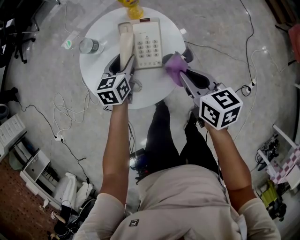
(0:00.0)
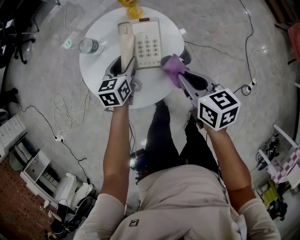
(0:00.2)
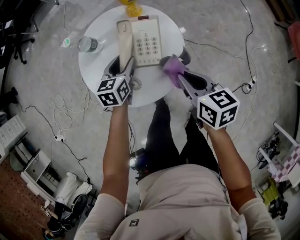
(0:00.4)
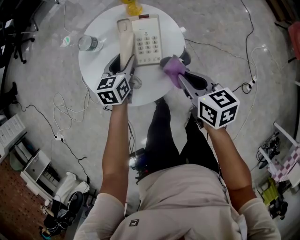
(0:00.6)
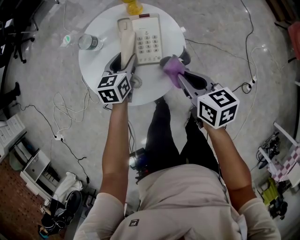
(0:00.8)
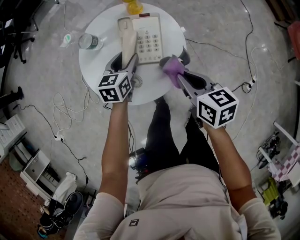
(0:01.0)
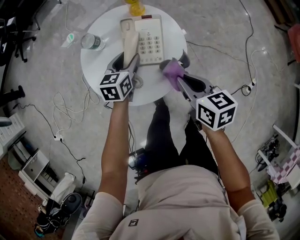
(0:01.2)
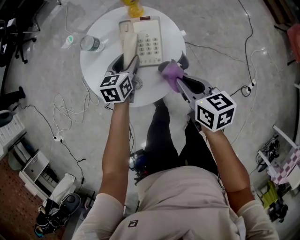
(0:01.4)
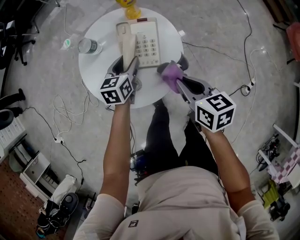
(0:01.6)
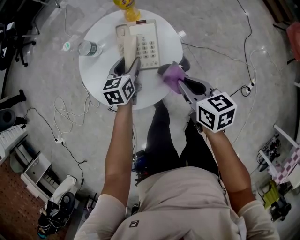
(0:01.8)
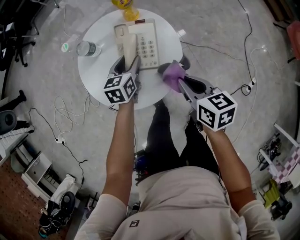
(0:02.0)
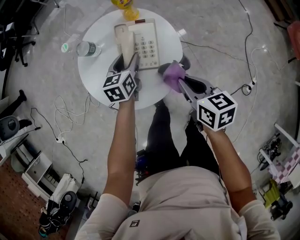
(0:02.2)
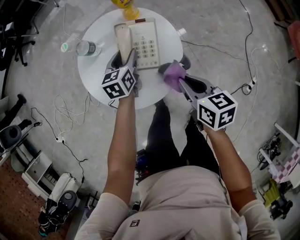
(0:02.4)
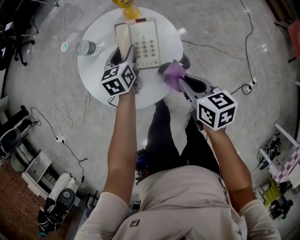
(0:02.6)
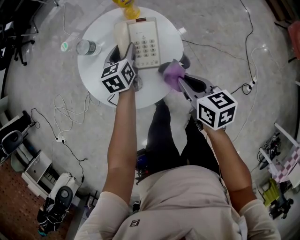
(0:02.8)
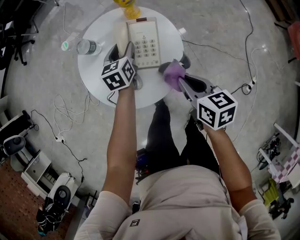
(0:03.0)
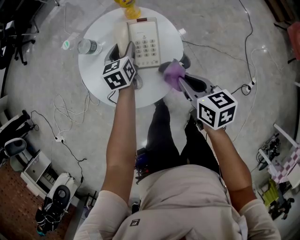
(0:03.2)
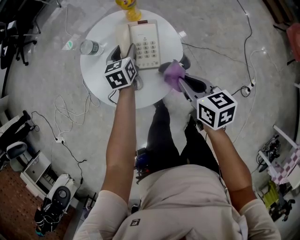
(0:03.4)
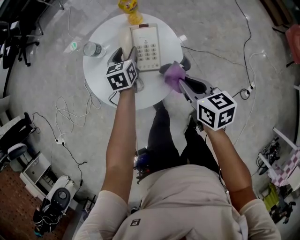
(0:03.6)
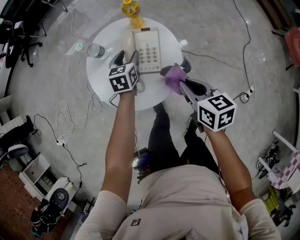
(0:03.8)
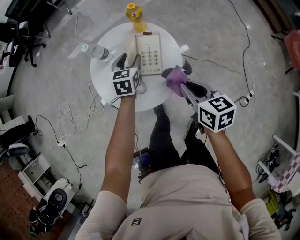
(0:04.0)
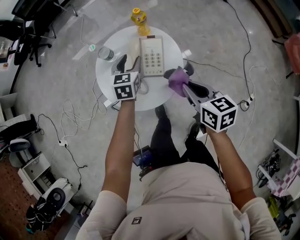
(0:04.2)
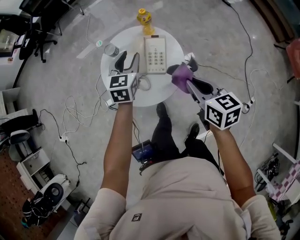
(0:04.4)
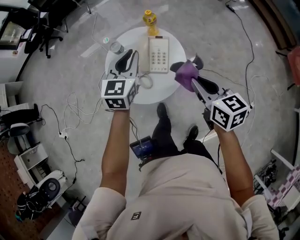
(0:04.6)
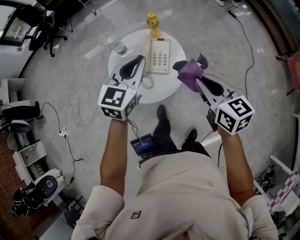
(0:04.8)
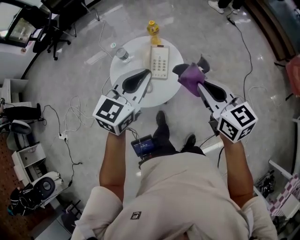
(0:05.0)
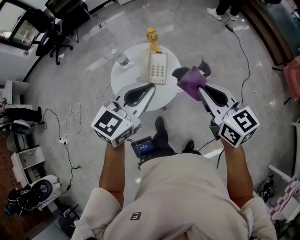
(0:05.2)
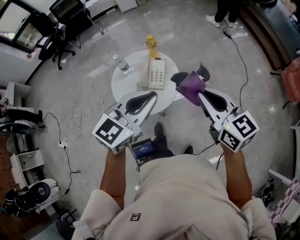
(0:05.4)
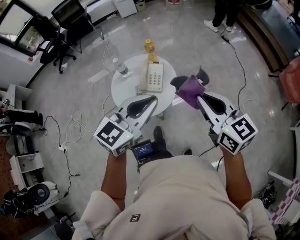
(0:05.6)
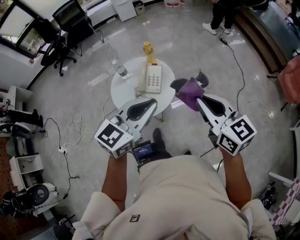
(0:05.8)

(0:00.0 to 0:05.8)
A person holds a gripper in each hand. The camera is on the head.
0:00.0 - 0:01.4: The grippers move only a little.
0:01.4 - 0:02.8: The left gripper shifts about 5 cm forward.
0:02.8 - 0:04.4: The grippers both shift upward by some 15 cm.
0:04.4 - 0:05.8: The right gripper moves upward and backward, some 25 cm, and swivels roughly 30 degrees. The left gripper moves upward, backward and to the right, approximately 35 cm, turns by some 30 degrees, and closes up.

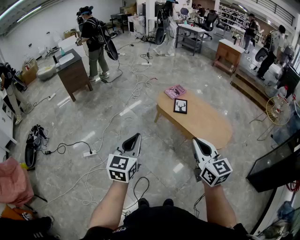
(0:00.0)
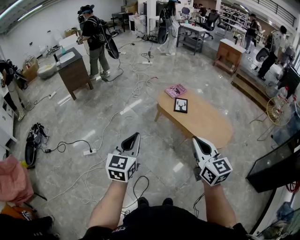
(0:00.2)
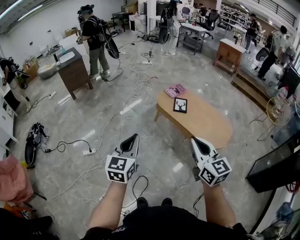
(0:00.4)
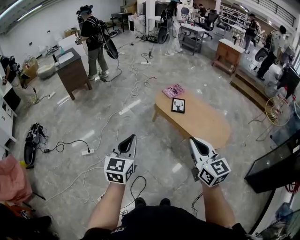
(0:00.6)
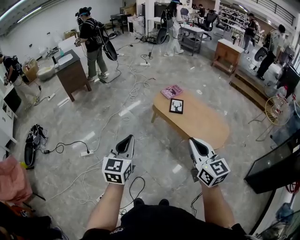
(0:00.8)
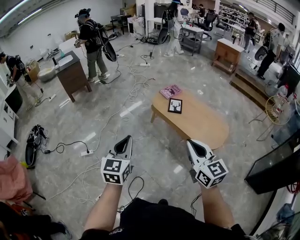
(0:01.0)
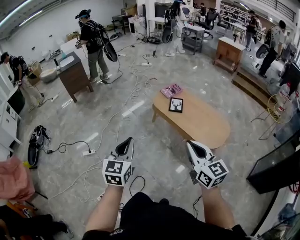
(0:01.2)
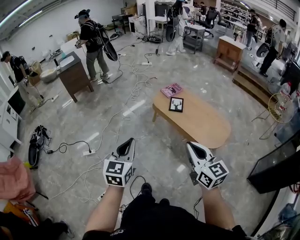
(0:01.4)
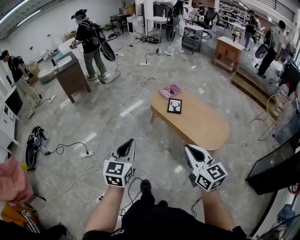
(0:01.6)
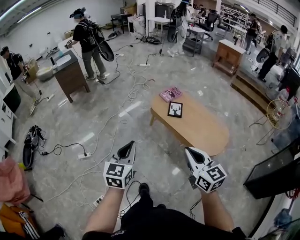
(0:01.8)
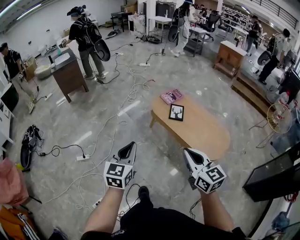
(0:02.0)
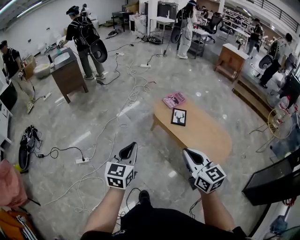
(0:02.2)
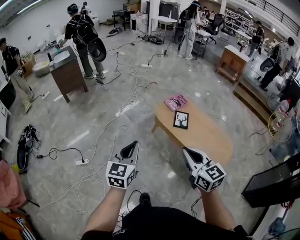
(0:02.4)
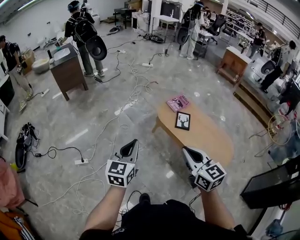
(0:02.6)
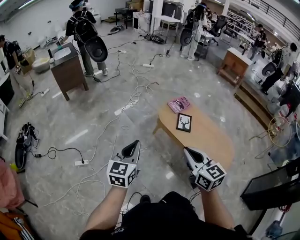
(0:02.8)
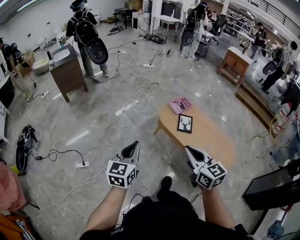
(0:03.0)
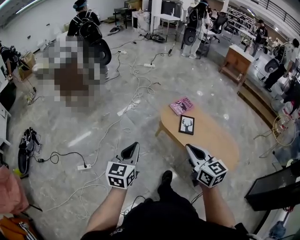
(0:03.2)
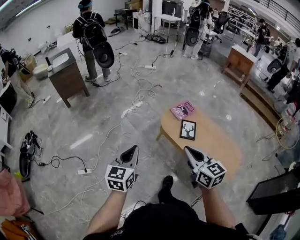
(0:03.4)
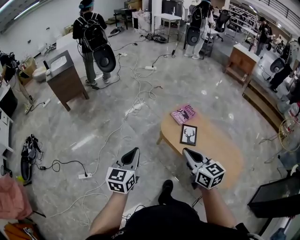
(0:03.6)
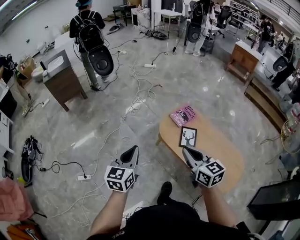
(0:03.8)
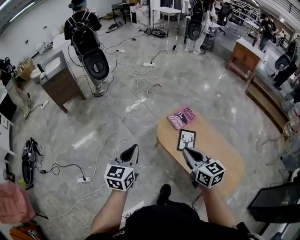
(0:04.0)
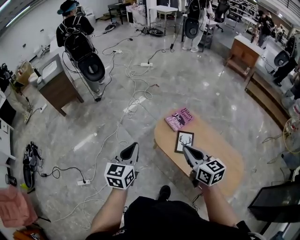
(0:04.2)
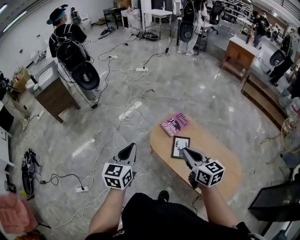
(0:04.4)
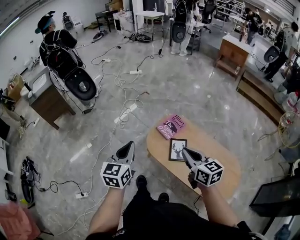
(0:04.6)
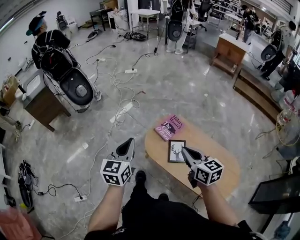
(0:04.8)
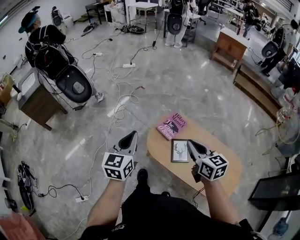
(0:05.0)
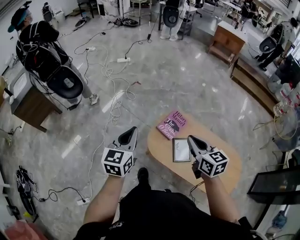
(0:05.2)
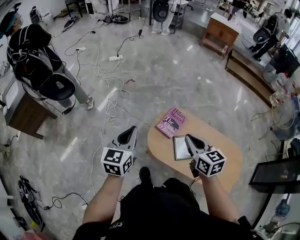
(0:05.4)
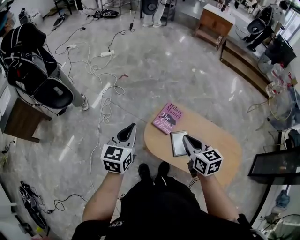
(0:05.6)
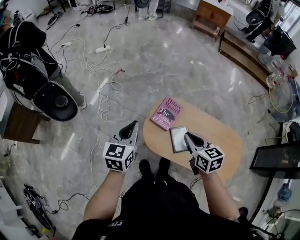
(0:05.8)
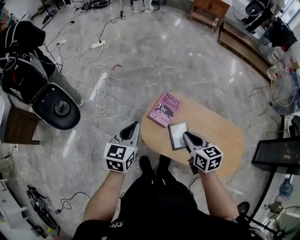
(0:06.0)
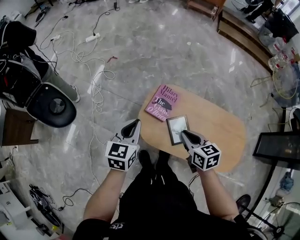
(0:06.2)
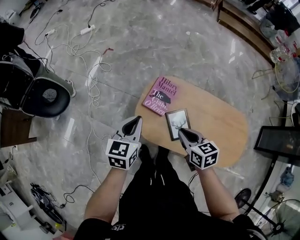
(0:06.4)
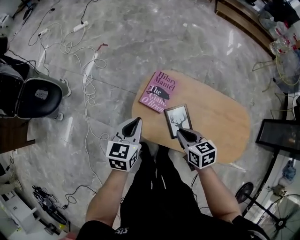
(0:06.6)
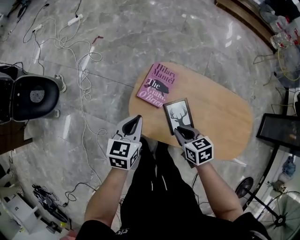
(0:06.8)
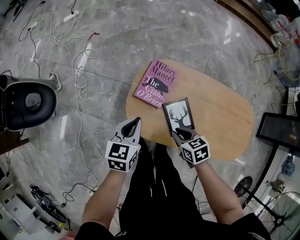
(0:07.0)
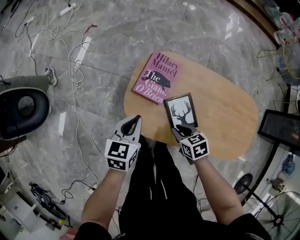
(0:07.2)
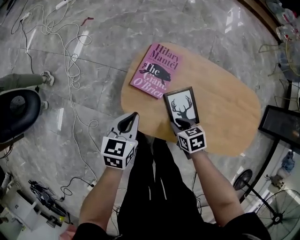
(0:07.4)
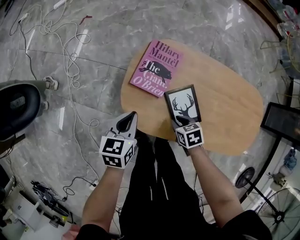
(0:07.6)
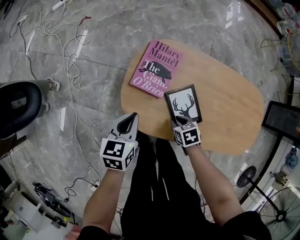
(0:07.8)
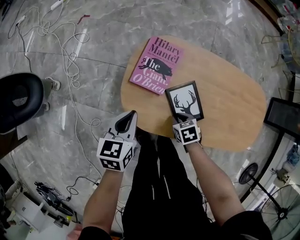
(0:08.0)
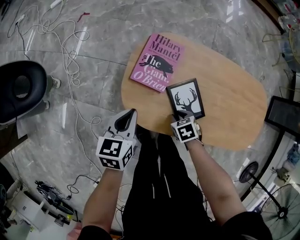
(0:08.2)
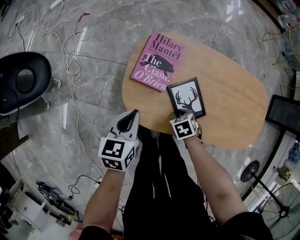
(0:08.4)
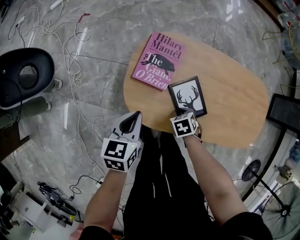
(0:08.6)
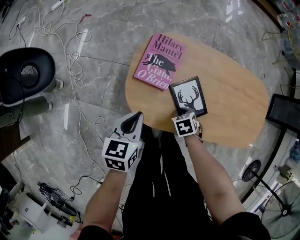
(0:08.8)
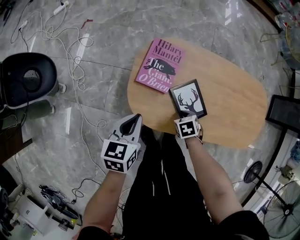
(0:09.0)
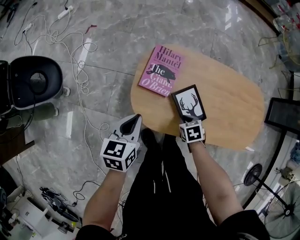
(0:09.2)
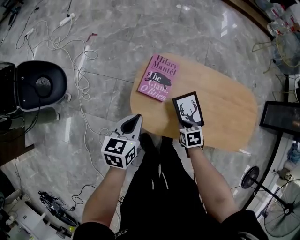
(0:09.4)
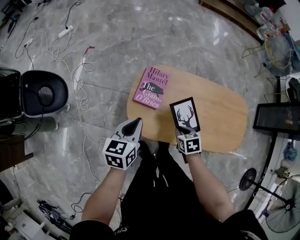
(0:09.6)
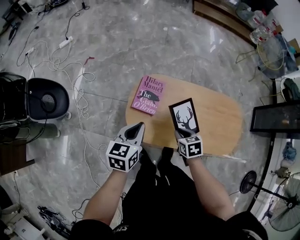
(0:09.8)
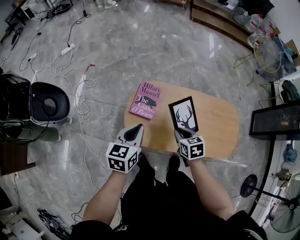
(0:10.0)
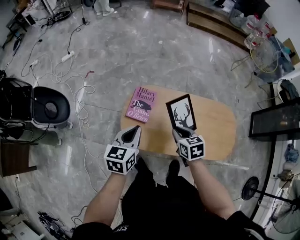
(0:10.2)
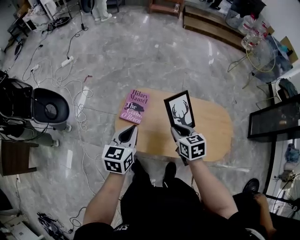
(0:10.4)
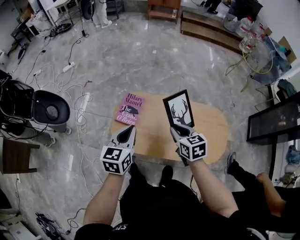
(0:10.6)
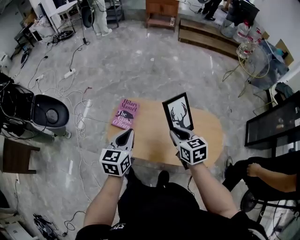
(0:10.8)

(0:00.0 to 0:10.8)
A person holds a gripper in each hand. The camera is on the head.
0:00.0 - 0:01.6: Both grippers travel together to the right, approximately 5 cm.
0:01.6 - 0:03.0: Both grippers travel together forward and to the left, roughly 30 cm.
0:03.0 - 0:04.6: Both grippers travel together forward and to the right, about 40 cm.
0:04.6 - 0:06.2: The grippers both shift forward and downward by about 30 cm. The right gripper changes its angle by some 30 degrees. The left gripper swivels some 30 degrees.
0:06.2 - 0:07.8: The two grippers go roughly 35 cm downward. The right gripper angles its fingers downward, by approximately 30 degrees.
0:07.8 - 0:09.2: The left gripper travels upward by roughly 5 cm.
0:09.2 - 0:10.8: Both grippers move upward and to the right, roughly 40 cm. The right gripper angles its fingers upward, by about 40 degrees.

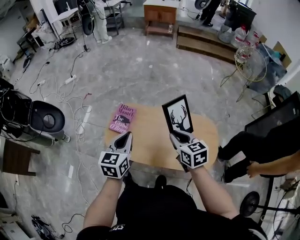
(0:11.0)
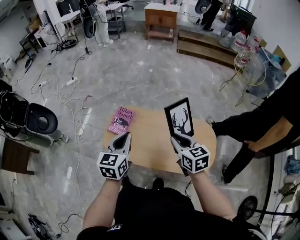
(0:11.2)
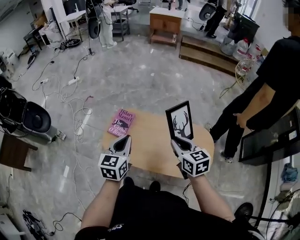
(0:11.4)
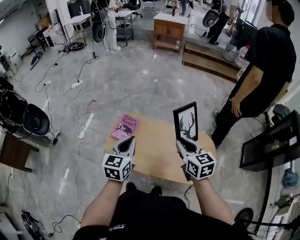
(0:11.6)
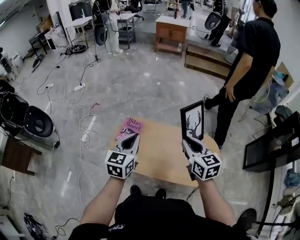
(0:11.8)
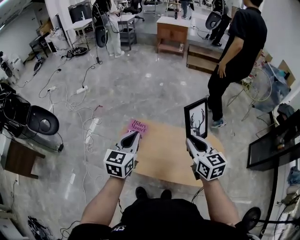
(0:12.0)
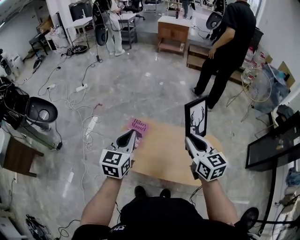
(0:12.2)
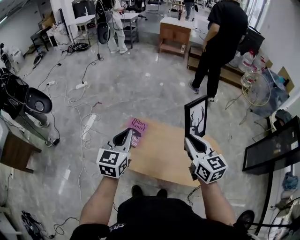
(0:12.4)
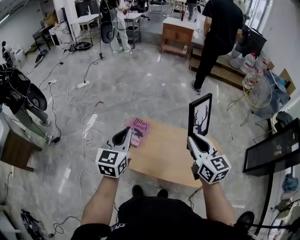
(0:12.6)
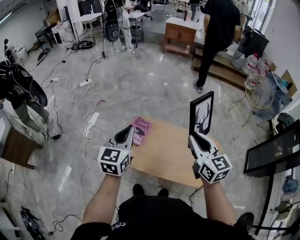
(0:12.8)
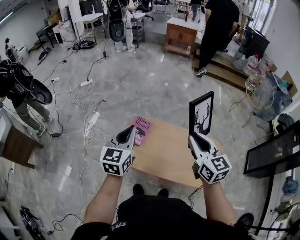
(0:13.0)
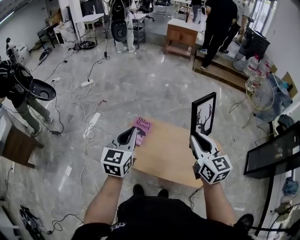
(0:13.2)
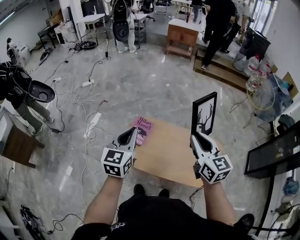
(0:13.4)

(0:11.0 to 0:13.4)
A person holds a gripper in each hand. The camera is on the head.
0:11.0 - 0:12.2: The left gripper is displaced upward and to the left by approximately 10 cm. Meanwhile the right gripper moves upward, about 15 cm.
0:12.2 - 0:13.4: The right gripper shifts by about 5 cm. Meanwhile the left gripper changes place by roughly 5 cm.

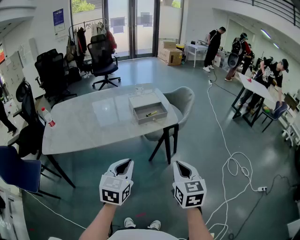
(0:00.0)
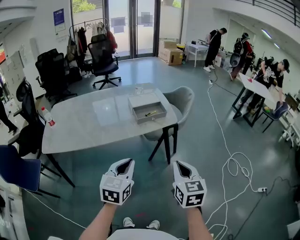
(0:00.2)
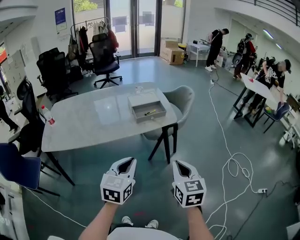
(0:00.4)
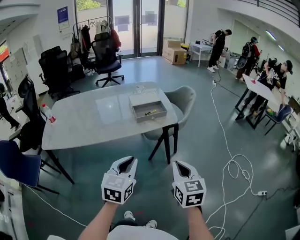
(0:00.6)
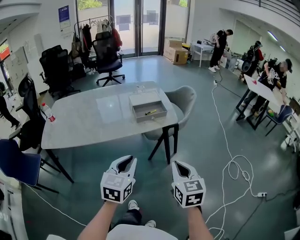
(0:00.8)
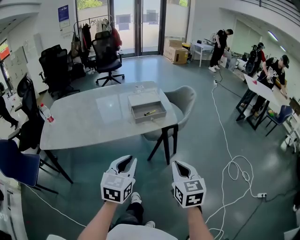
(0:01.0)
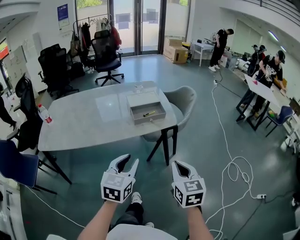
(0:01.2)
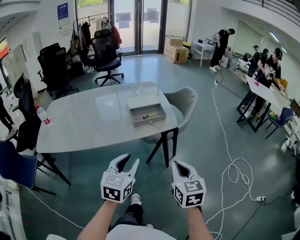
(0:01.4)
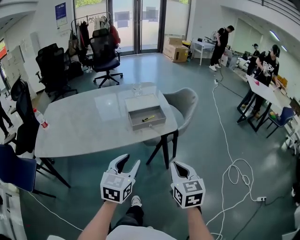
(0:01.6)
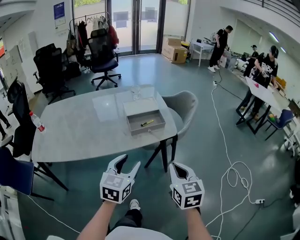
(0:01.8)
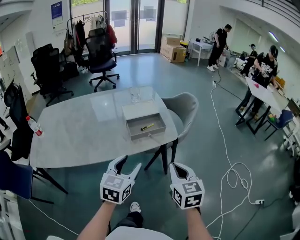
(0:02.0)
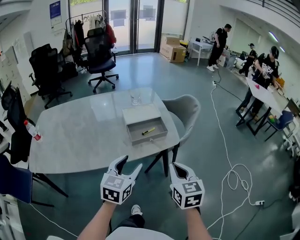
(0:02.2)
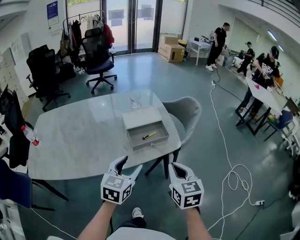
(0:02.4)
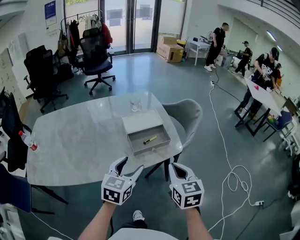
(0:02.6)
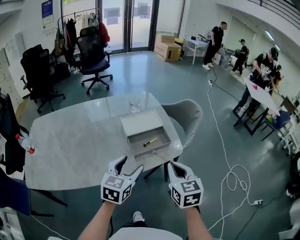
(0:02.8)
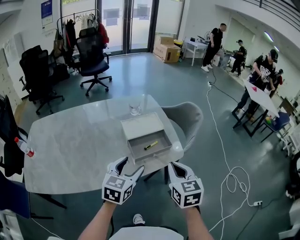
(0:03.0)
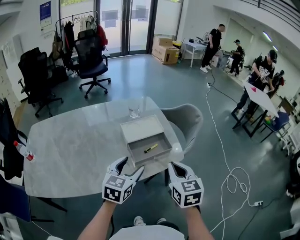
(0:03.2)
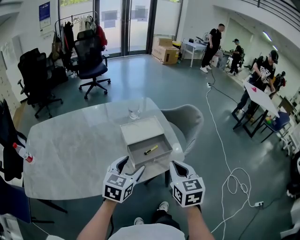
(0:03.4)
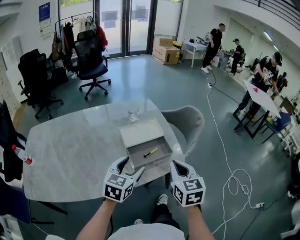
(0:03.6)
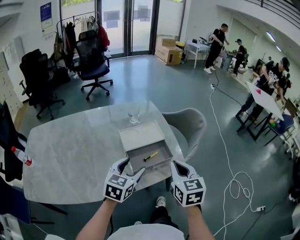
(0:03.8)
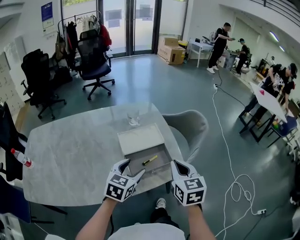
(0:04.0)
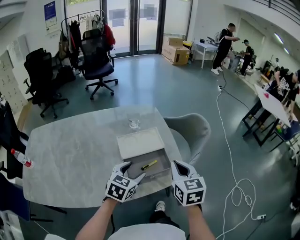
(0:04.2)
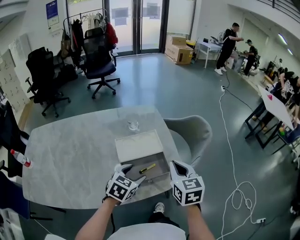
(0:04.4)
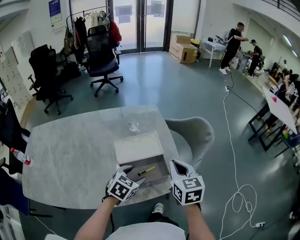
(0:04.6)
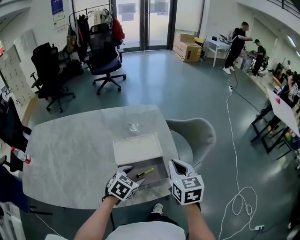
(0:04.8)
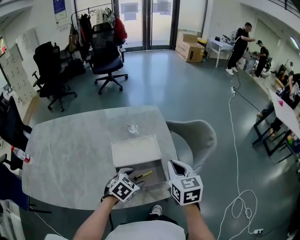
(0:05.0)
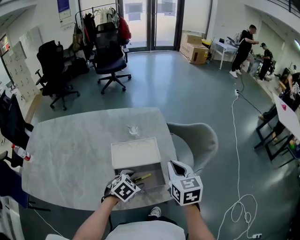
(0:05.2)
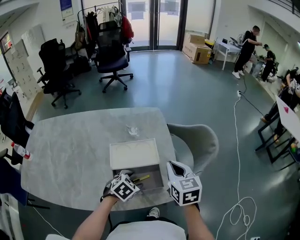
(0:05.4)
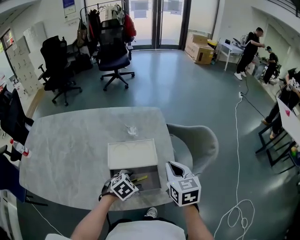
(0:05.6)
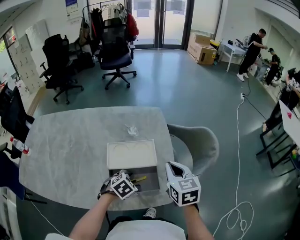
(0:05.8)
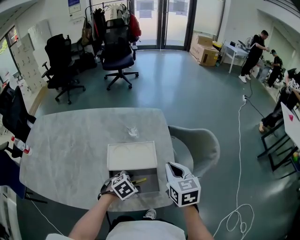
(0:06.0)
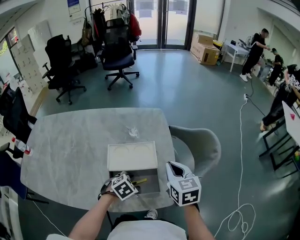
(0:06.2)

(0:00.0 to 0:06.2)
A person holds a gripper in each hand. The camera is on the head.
0:00.0 - 0:01.6: The right gripper shifts some 10 cm forward. The left gripper is displaced forward and to the right by about 15 cm, and opens.
0:01.6 - 0:03.2: The left gripper heads forward, covering about 25 cm, and opens up. Meanwhile the right gripper is displaced forward and to the left by about 25 cm.
0:03.2 - 0:04.6: The left gripper heads forward and downward, covering approximately 20 cm, and turns by roughly 20 degrees; the right gripper heads forward, covering roughly 20 cm.
0:04.6 - 0:06.2: The left gripper travels downward by about 10 cm, and turns by approximately 20 degrees, while the right gripper goes approximately 10 cm forward.
